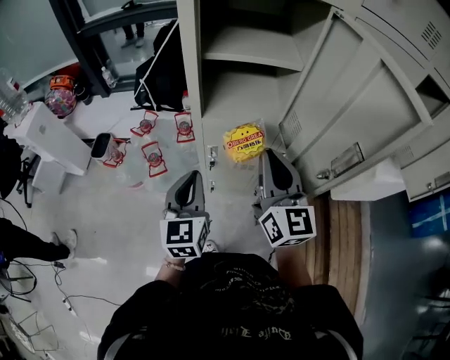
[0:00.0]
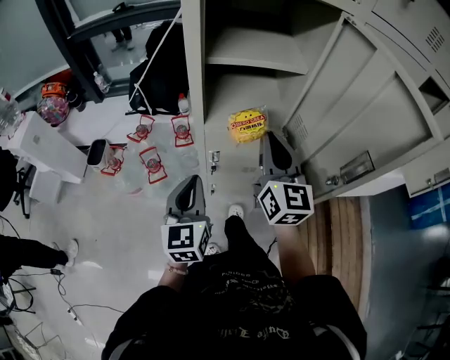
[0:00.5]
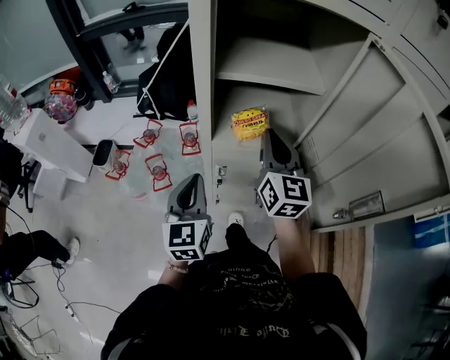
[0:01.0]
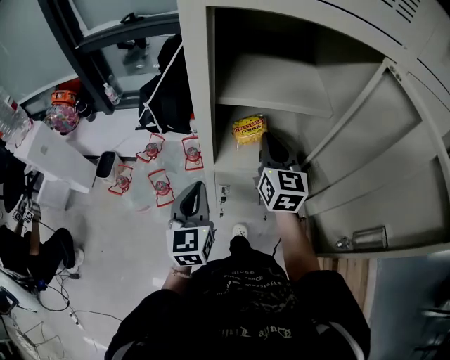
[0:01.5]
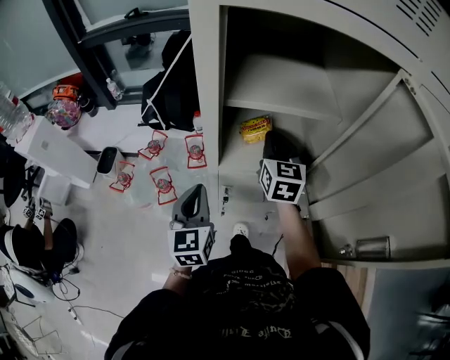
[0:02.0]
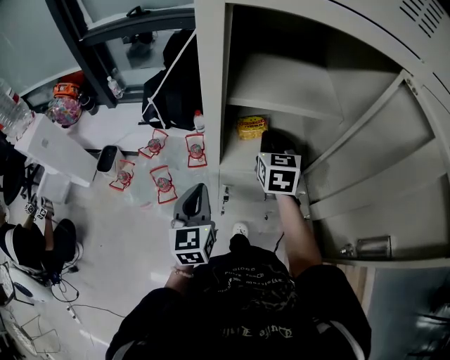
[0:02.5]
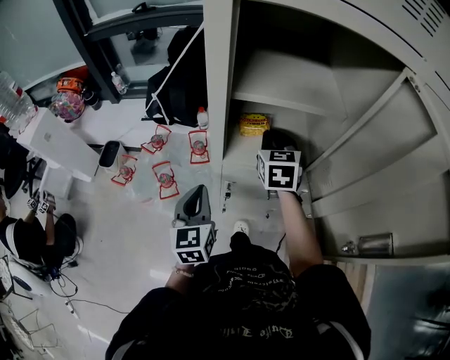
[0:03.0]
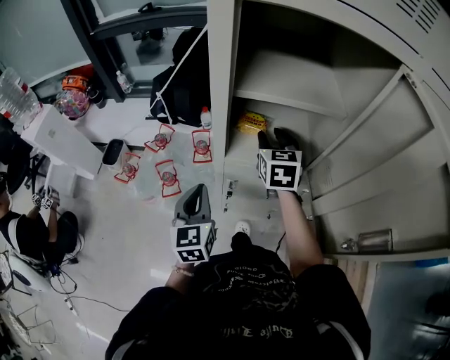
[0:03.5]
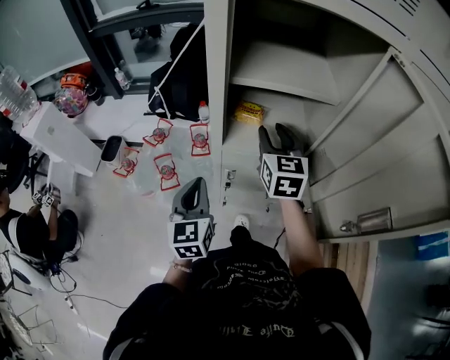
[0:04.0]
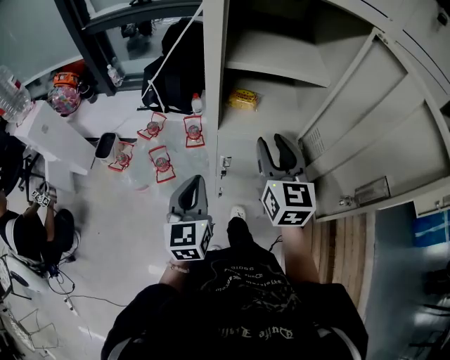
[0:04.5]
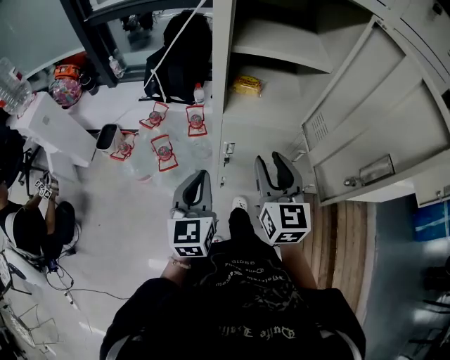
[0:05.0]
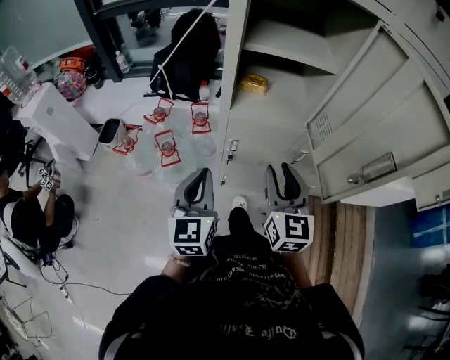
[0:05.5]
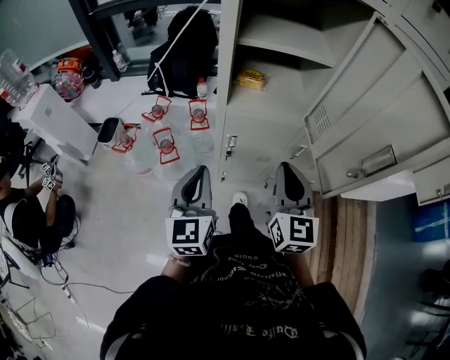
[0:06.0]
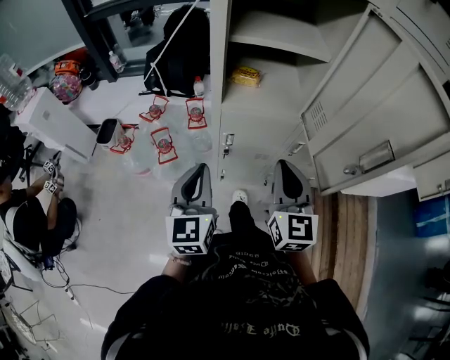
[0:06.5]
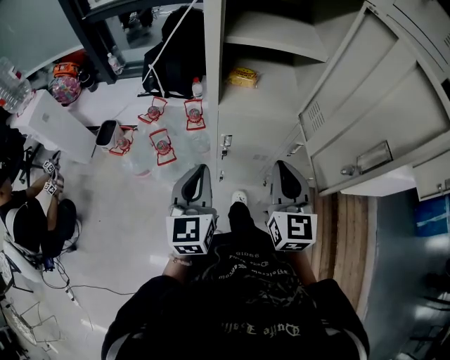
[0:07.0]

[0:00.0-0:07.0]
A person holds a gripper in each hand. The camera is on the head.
0.0 to 2.0 s: The left gripper shifts some 15 cm forward, while the right gripper goes roughly 25 cm forward, and swivels roughly 20 degrees.
2.0 to 3.5 s: The right gripper opens.
3.5 to 5.0 s: The right gripper heads backward, covering about 25 cm. The left gripper goes approximately 10 cm backward.
5.0 to 7.0 s: The right gripper ends up about 5 cm from where it was, and closes.

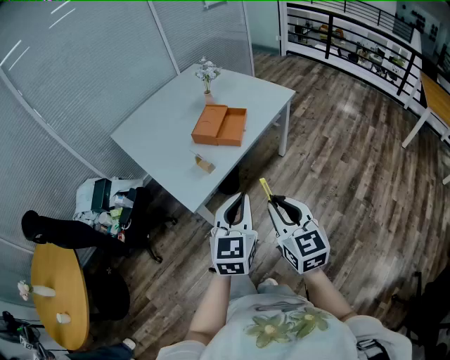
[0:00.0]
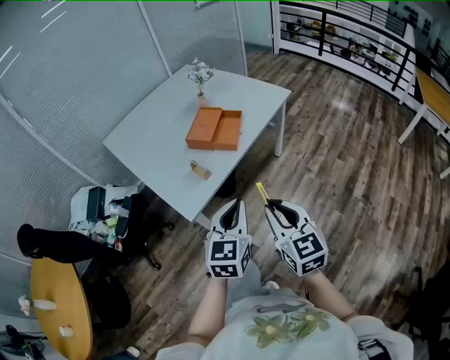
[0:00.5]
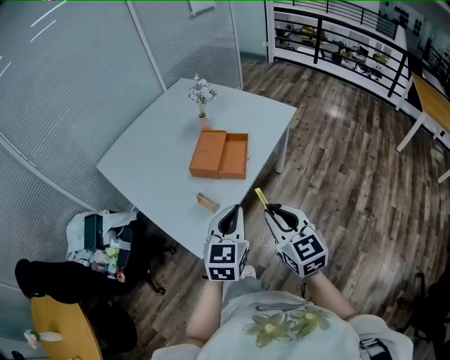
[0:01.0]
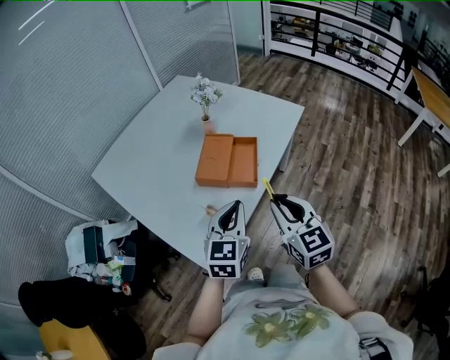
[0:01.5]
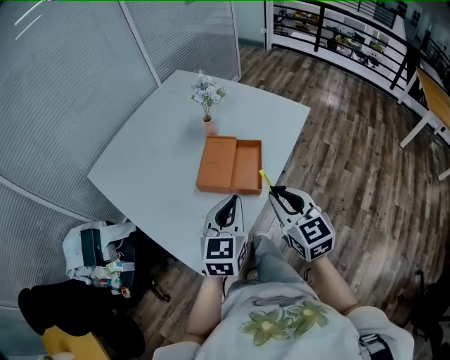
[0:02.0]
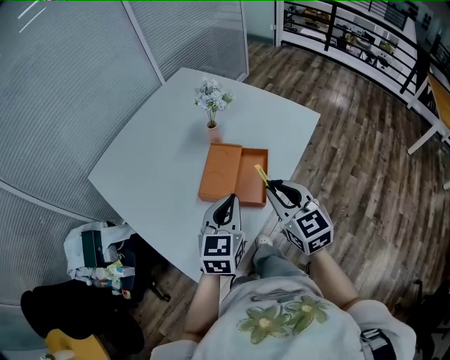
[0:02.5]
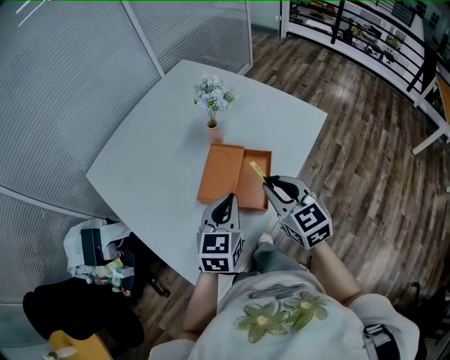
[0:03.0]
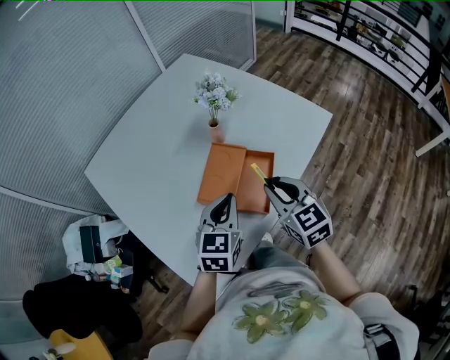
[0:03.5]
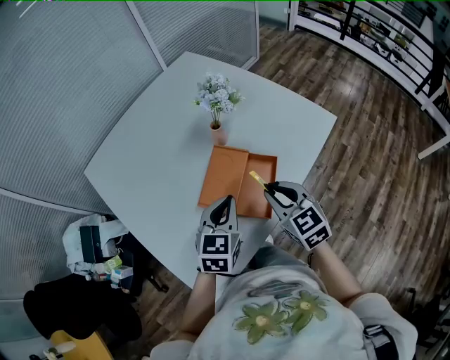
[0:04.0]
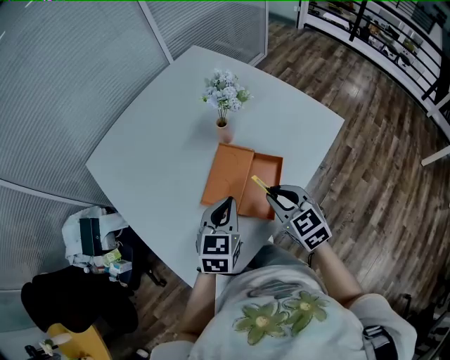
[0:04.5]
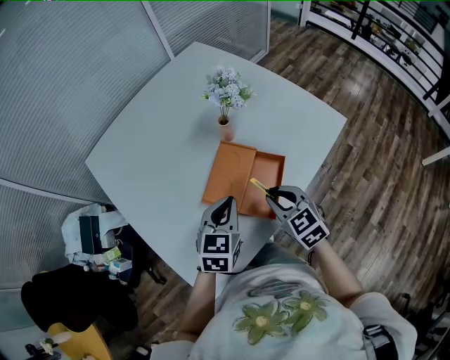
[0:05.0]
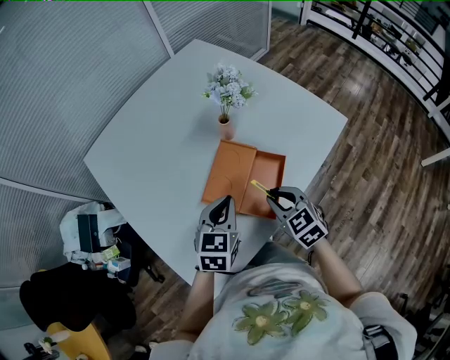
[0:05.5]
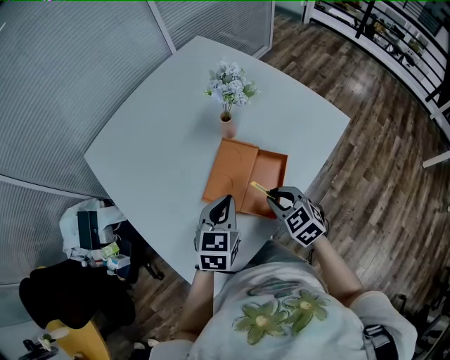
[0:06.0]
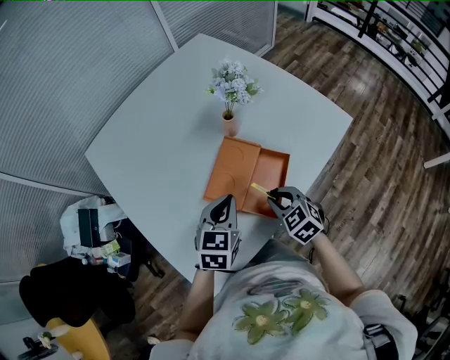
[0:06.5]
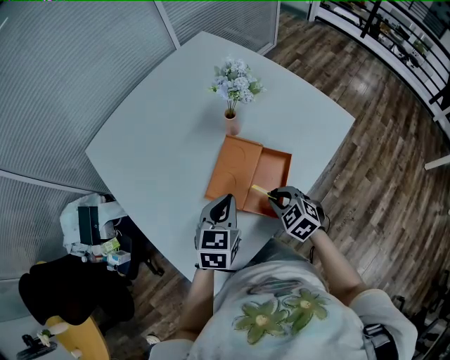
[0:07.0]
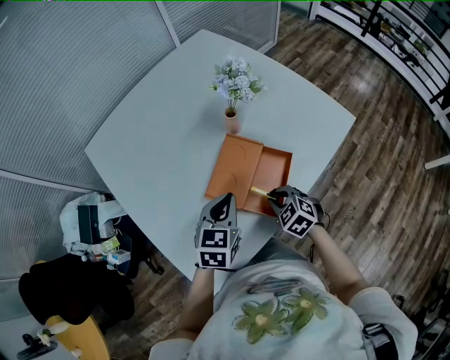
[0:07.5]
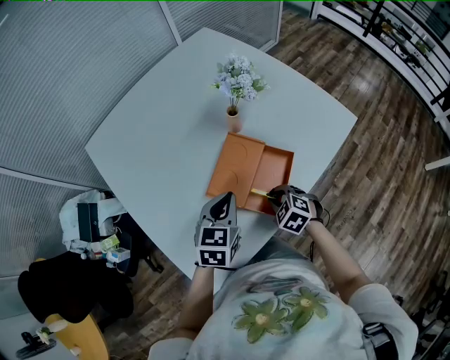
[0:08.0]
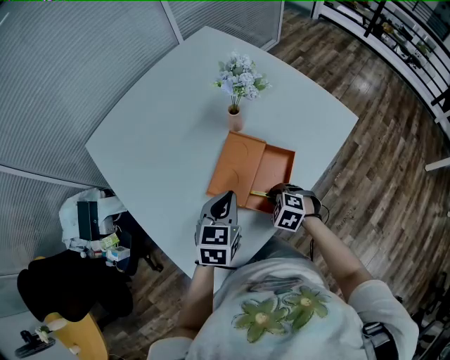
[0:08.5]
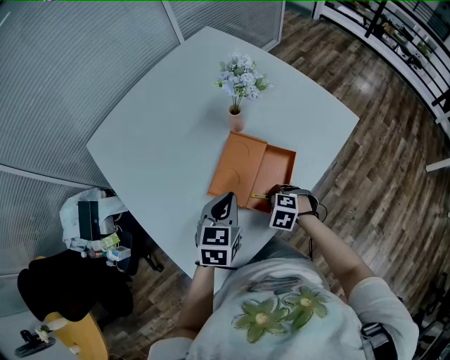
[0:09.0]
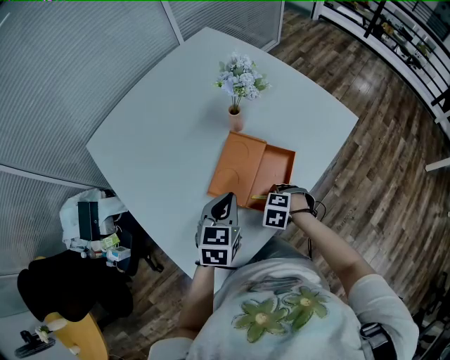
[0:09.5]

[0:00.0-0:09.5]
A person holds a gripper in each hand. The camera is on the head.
0.0 to 2.0 s: Both grippers move forward, some 35 cm.
2.0 to 4.0 s: The two grippers go about 20 cm forward and downward.
4.0 to 5.5 s: The right gripper shifts about 5 cm downward.
5.5 to 7.5 s: The right gripper heads downward, covering some 10 cm, and changes its angle by about 20 degrees.
7.5 to 9.5 s: The right gripper goes roughly 5 cm downward, and rotates approximately 30 degrees.

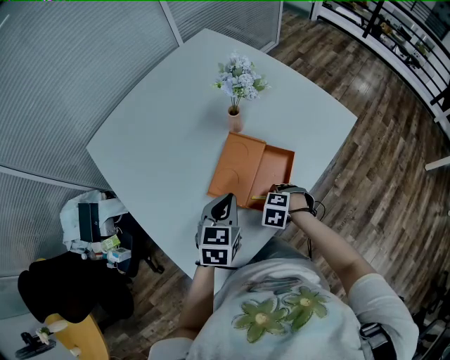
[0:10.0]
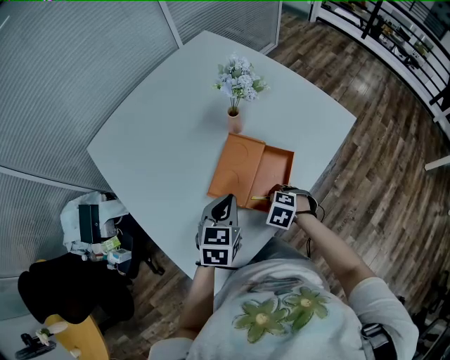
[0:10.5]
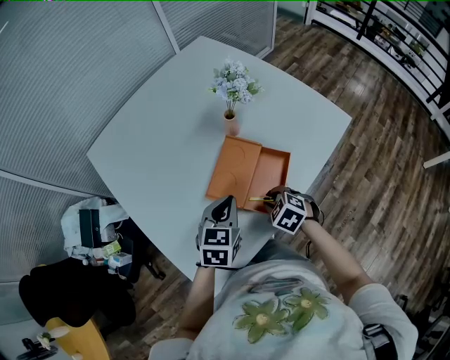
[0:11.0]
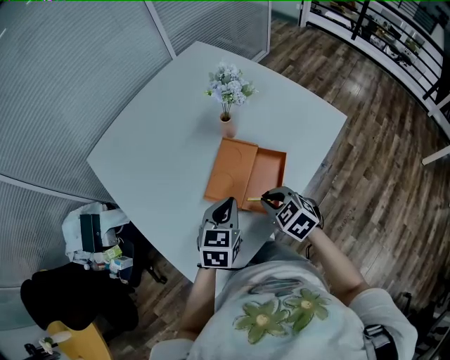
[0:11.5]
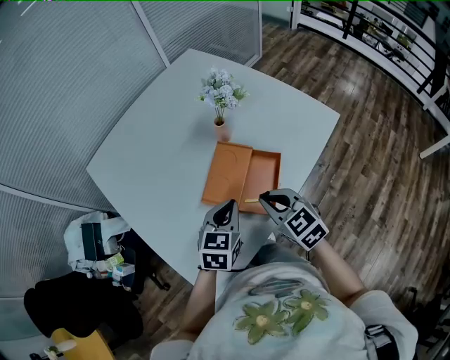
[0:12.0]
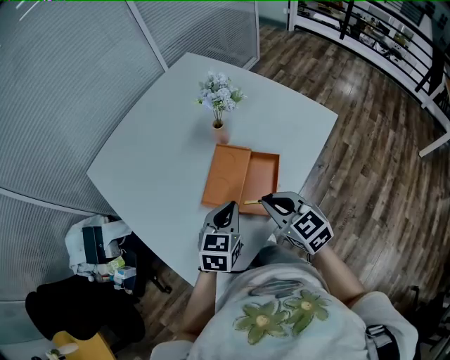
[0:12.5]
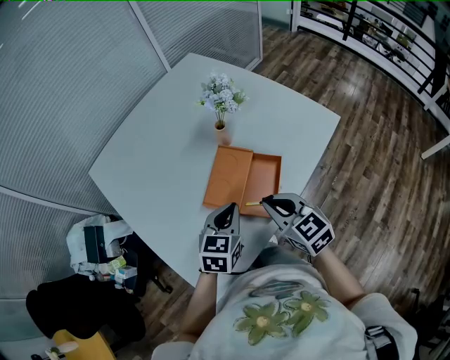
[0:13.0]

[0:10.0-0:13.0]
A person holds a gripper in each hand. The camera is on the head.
10.0 to 11.5 s: The right gripper goes some 15 cm upward, and points its fingers about 30 degrees further upward.
11.5 to 13.0 s: The right gripper shifts approximately 10 cm upward, and rotates about 30 degrees.

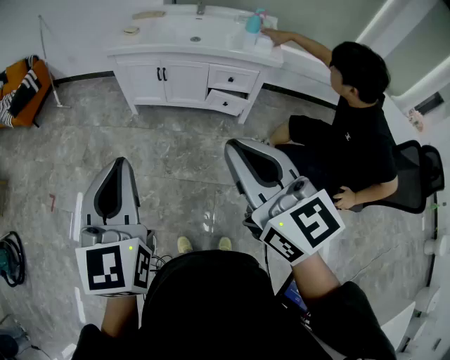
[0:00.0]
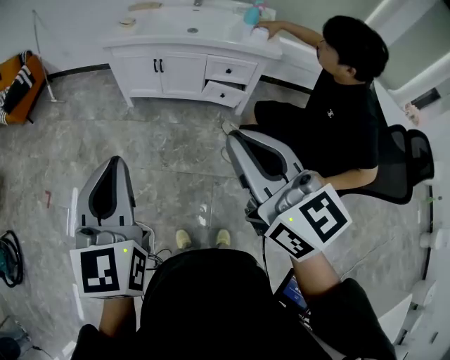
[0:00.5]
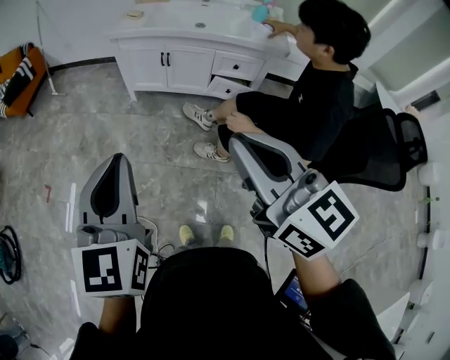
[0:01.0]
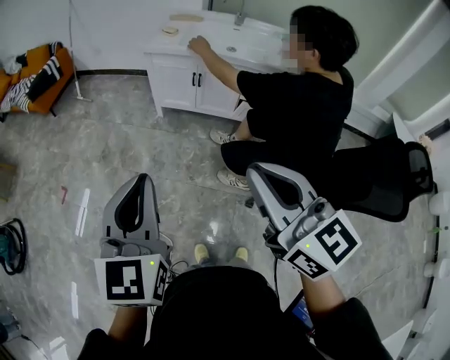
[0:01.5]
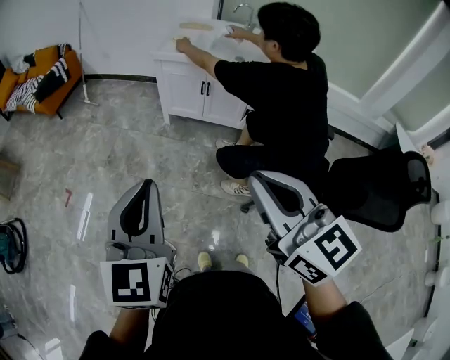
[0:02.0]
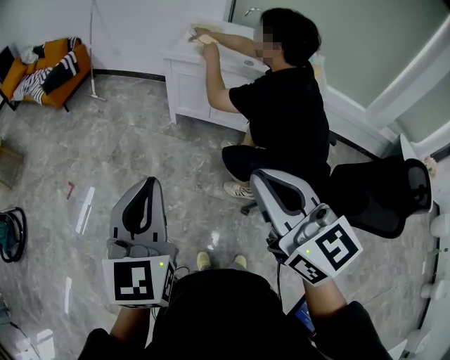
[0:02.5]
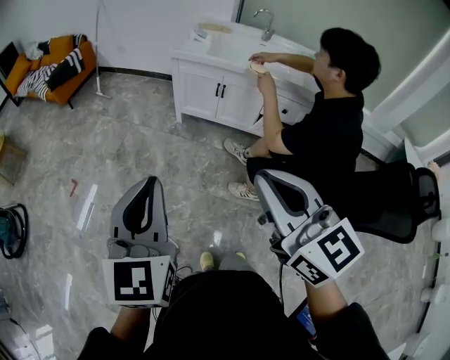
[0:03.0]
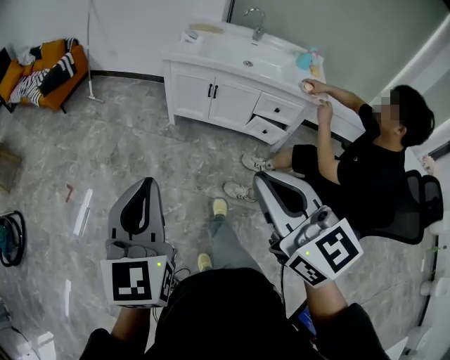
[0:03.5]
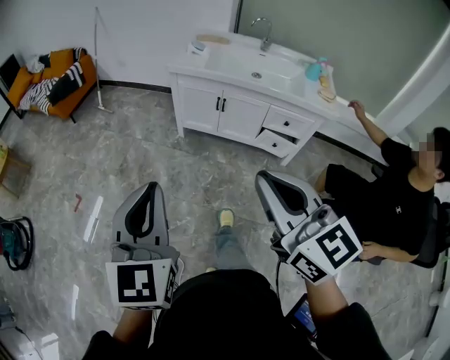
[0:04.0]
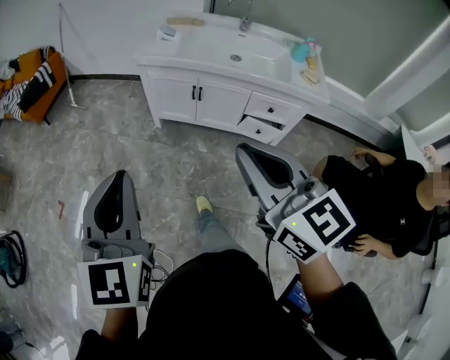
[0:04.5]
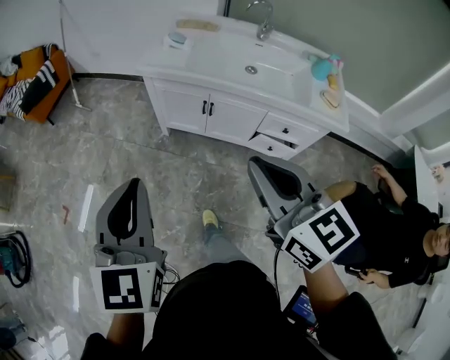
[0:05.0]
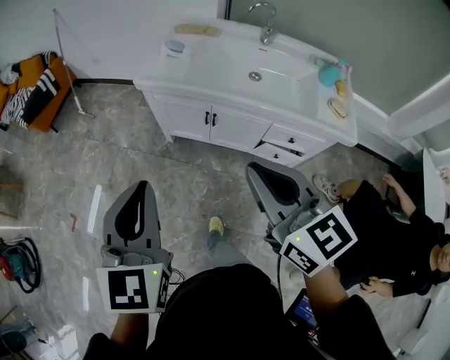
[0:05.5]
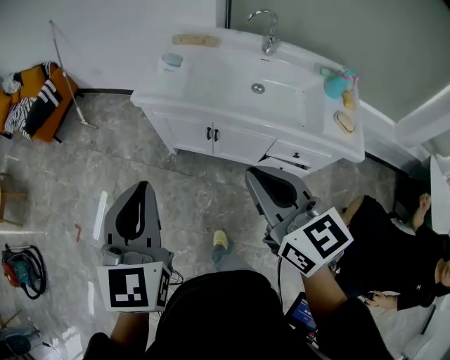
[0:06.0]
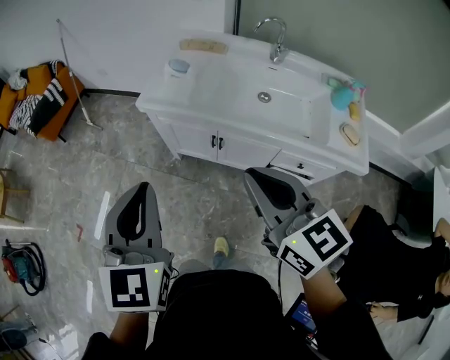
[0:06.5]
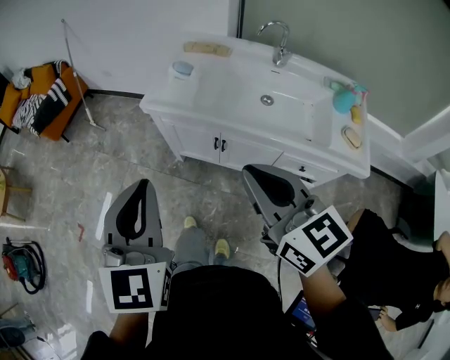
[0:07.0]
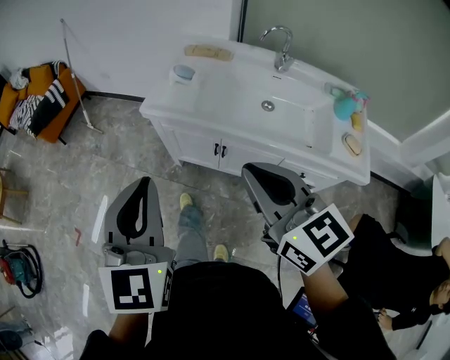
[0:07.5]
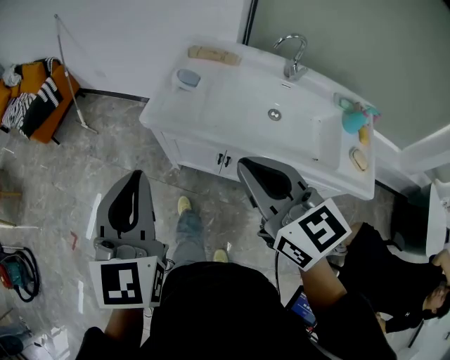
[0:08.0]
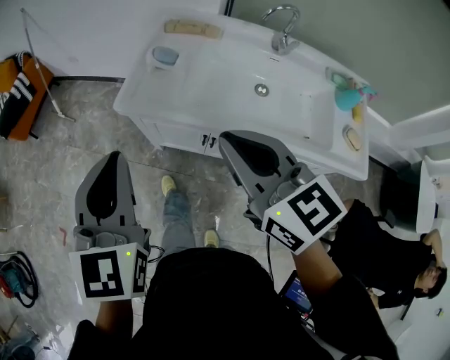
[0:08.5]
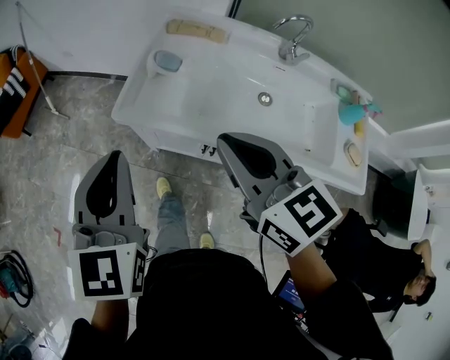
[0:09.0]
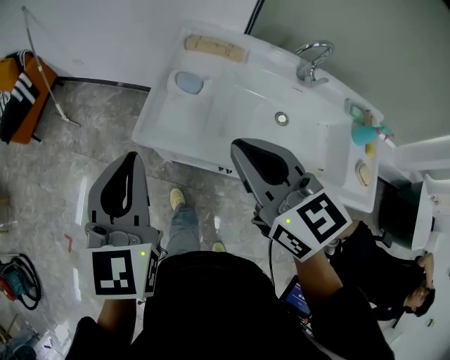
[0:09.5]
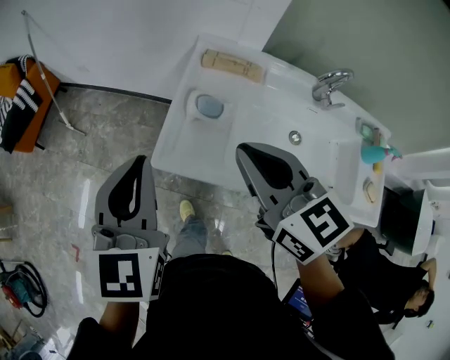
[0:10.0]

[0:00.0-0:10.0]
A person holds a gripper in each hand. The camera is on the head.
0.0 to 2.0 s: Both grippers move to the left, about 15 cm.
2.0 to 4.0 s: The two grippers go some 5 cm forward.
4.0 to 6.0 s: The pair of grippers is taken forward and to the right, about 40 cm.
6.0 to 8.0 s: Both grippers move forward, some 15 cm.
8.0 to 10.0 s: The grippers both shift forward by some 25 cm.
